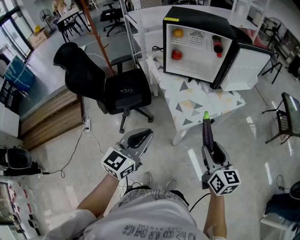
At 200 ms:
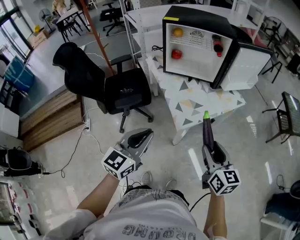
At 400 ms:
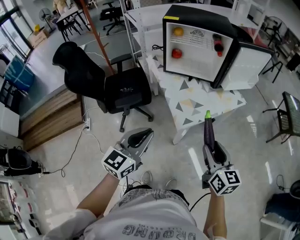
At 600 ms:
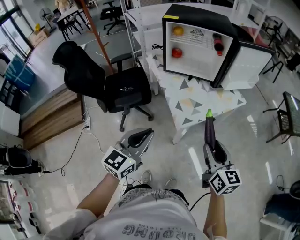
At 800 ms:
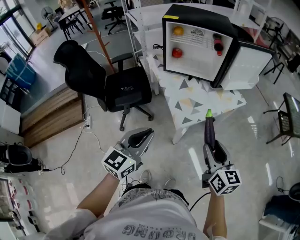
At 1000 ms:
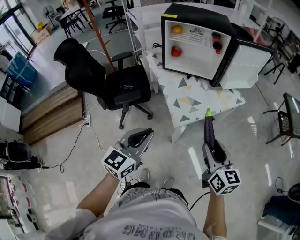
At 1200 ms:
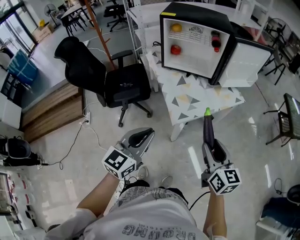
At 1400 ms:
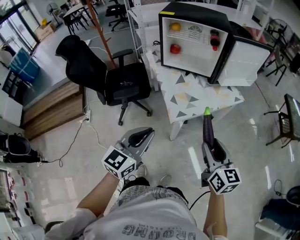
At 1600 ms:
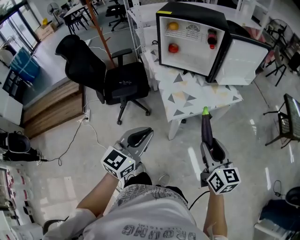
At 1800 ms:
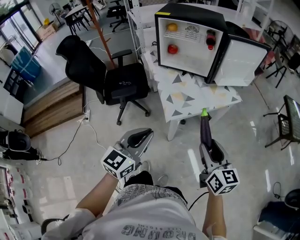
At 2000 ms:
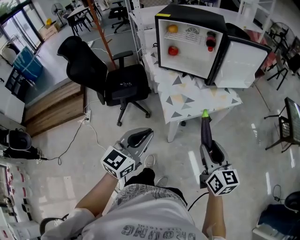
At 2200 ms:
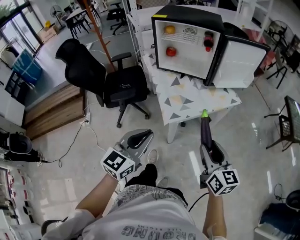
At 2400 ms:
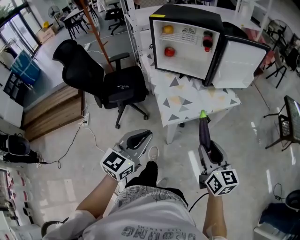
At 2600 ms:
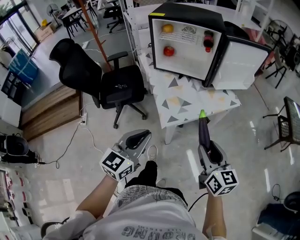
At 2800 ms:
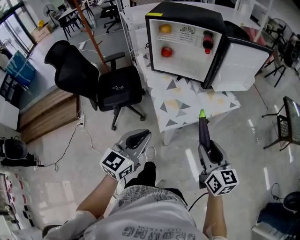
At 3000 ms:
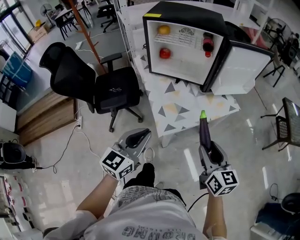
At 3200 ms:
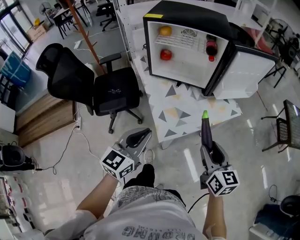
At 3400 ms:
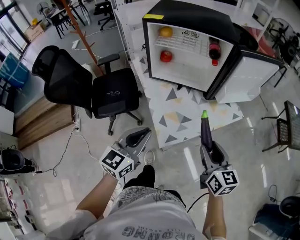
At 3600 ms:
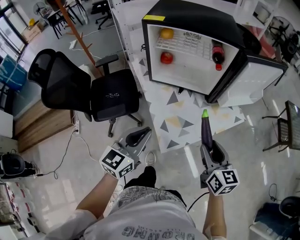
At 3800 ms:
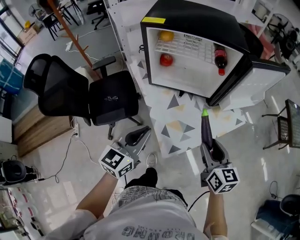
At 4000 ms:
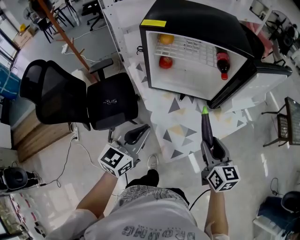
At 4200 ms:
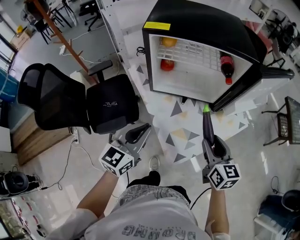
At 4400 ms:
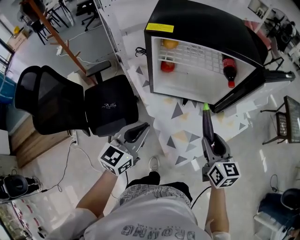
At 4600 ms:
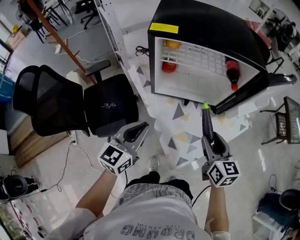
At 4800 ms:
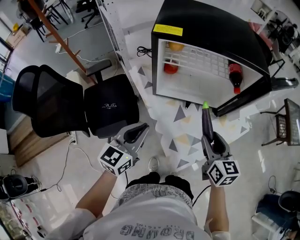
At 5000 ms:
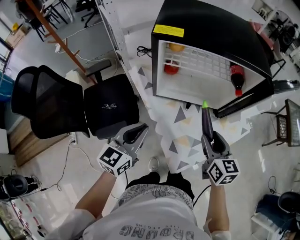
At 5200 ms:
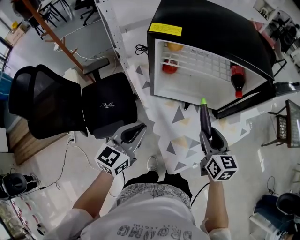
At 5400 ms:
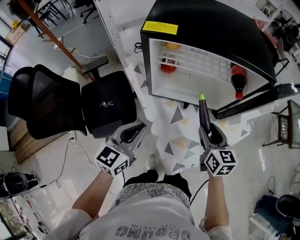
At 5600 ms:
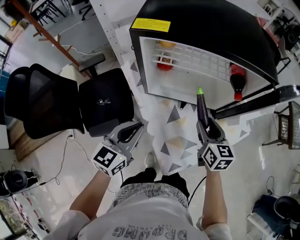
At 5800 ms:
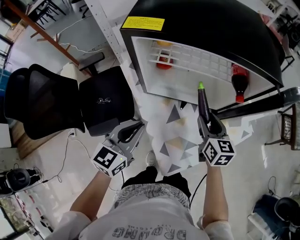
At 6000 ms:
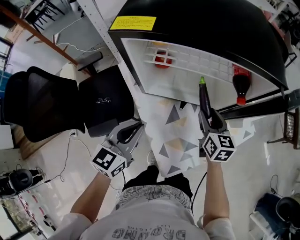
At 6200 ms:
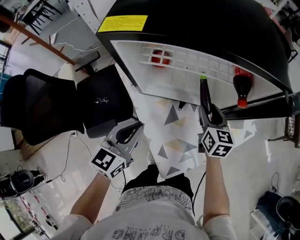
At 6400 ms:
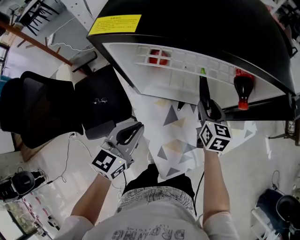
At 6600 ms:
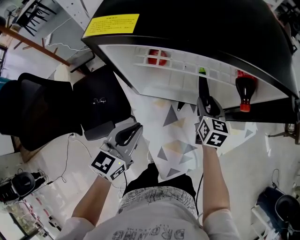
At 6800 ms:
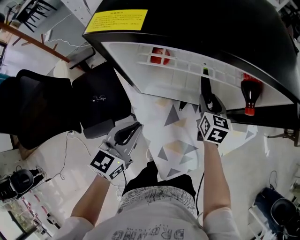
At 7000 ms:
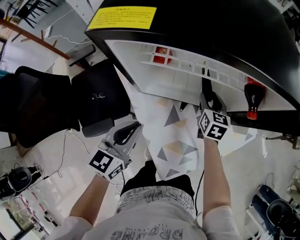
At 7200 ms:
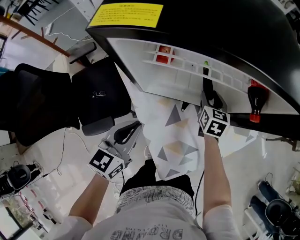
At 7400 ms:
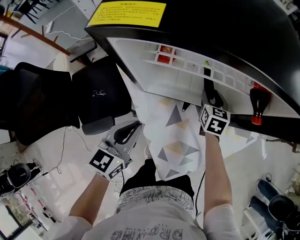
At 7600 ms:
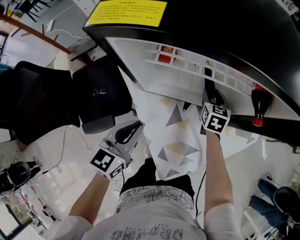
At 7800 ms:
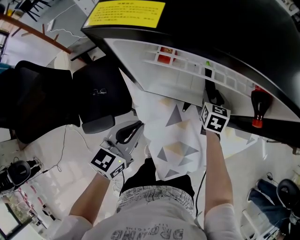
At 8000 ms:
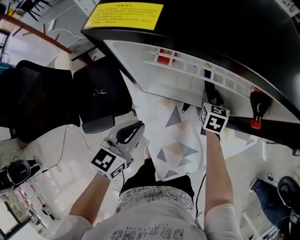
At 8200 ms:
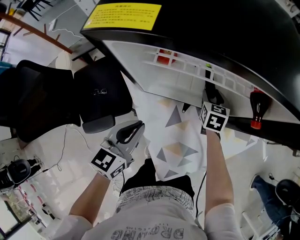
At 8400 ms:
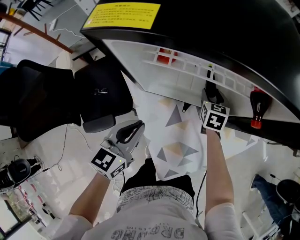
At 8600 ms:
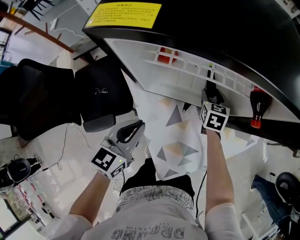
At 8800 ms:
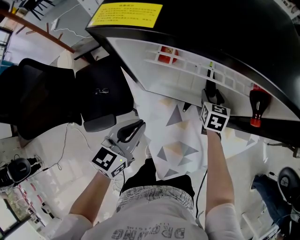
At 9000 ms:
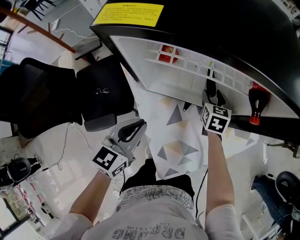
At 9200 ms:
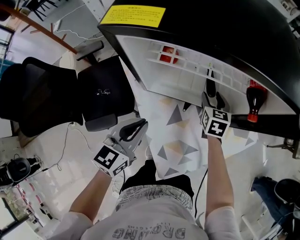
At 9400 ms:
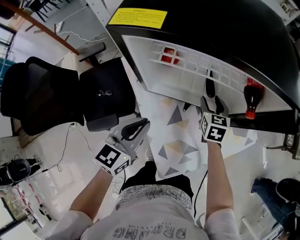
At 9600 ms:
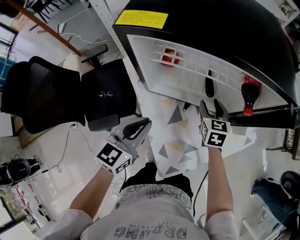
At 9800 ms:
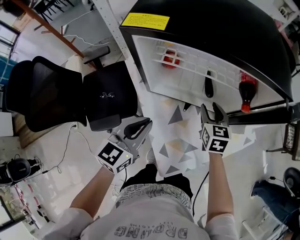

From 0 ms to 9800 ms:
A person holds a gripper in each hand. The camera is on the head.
From 0 ms to 1400 ms: The two grippers go approximately 5 cm to the right.
From 1400 ms to 2800 ms: Both grippers move forward, approximately 5 cm.
From 2800 ms to 4200 ms: The left gripper goes approximately 30 cm forward and to the left. Meanwhile the right gripper moves forward, some 25 cm.
From 4200 ms to 5600 ms: The right gripper travels forward and downward by about 15 cm; the left gripper travels forward by approximately 10 cm.
From 5600 ms to 7000 ms: The left gripper is displaced forward and downward by approximately 10 cm, while the right gripper moves forward and downward, approximately 20 cm.
From 7000 ms to 8400 ms: There are only small adjustments of the grippers.
From 8400 ms to 9800 ms: The right gripper shifts about 15 cm upward and backward; the left gripper is displaced upward by some 5 cm.

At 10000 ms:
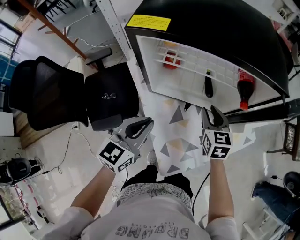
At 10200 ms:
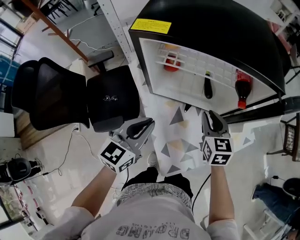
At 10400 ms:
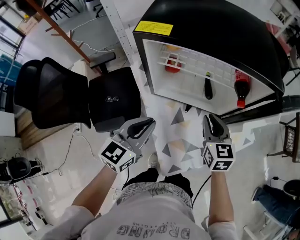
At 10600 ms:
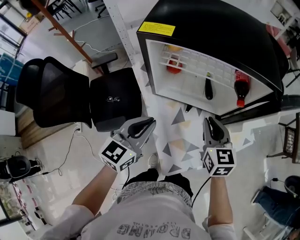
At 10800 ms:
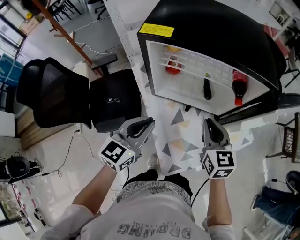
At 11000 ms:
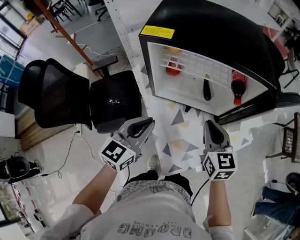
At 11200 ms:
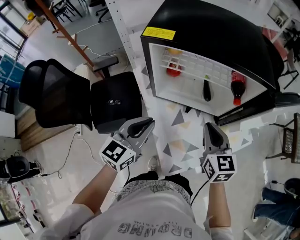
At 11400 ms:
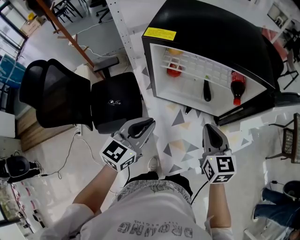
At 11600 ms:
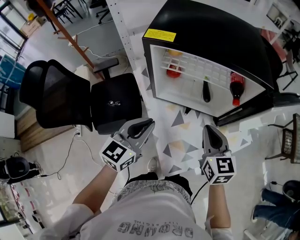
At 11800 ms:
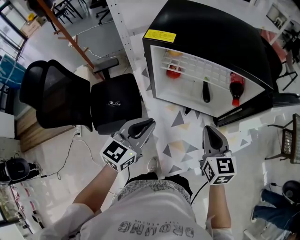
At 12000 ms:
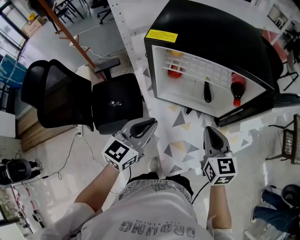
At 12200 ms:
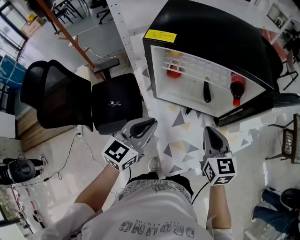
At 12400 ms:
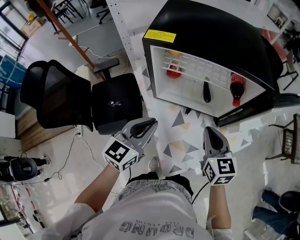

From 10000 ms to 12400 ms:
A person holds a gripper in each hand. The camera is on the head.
From 10000 ms to 11200 ms: The right gripper moves upward and backward, some 15 cm, and closes its fingers.
From 11200 ms to 12400 ms: Both grippers stay about where they are.

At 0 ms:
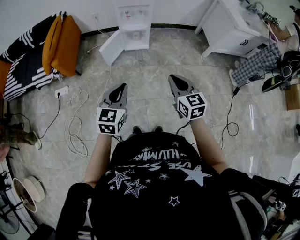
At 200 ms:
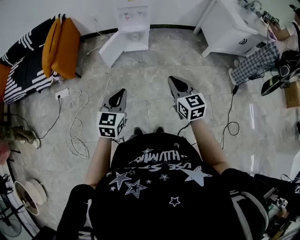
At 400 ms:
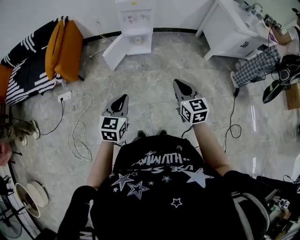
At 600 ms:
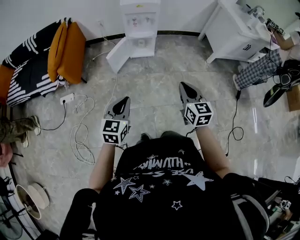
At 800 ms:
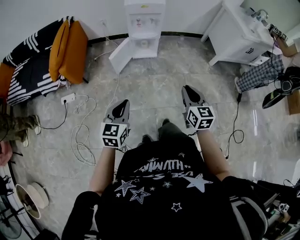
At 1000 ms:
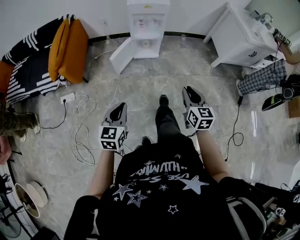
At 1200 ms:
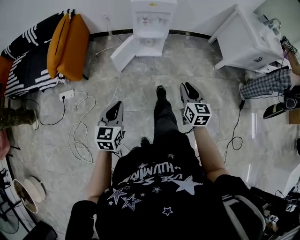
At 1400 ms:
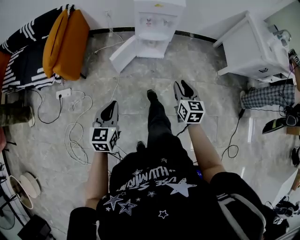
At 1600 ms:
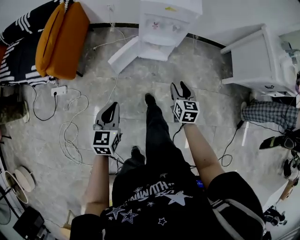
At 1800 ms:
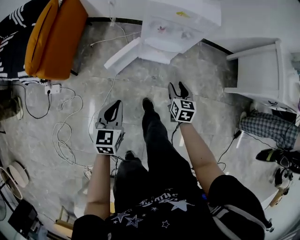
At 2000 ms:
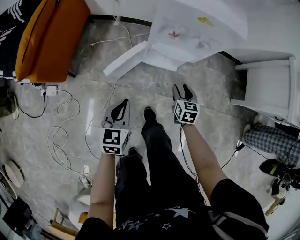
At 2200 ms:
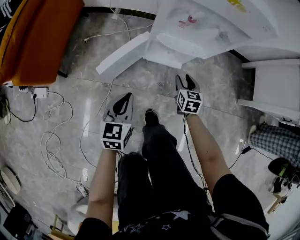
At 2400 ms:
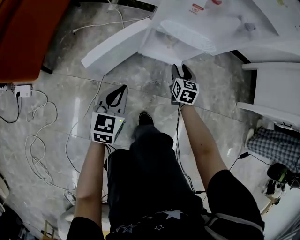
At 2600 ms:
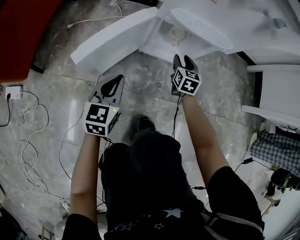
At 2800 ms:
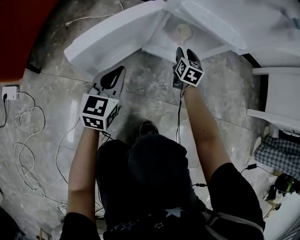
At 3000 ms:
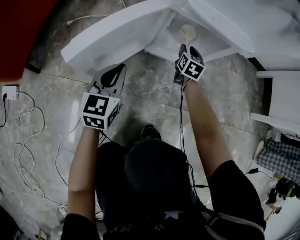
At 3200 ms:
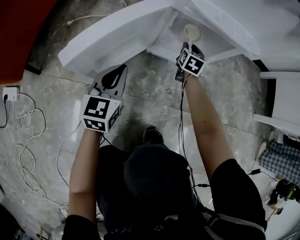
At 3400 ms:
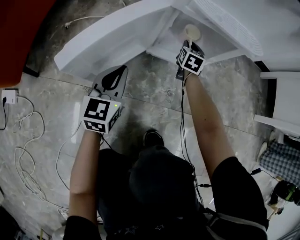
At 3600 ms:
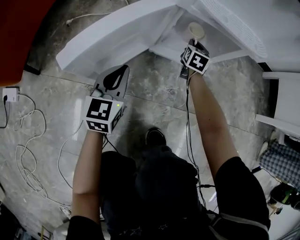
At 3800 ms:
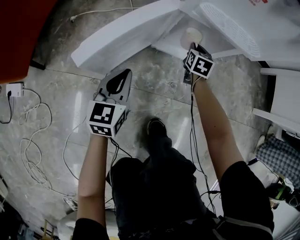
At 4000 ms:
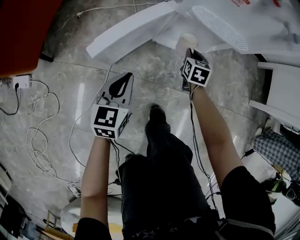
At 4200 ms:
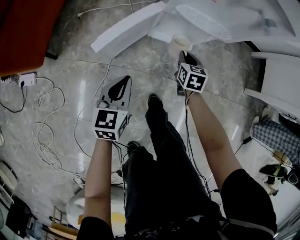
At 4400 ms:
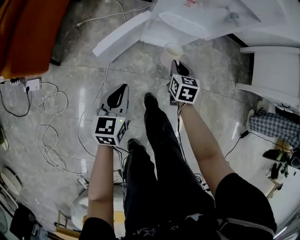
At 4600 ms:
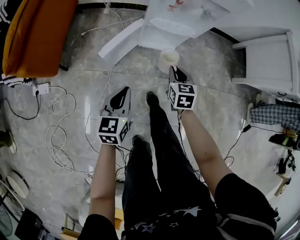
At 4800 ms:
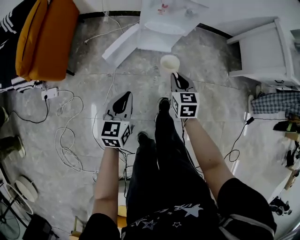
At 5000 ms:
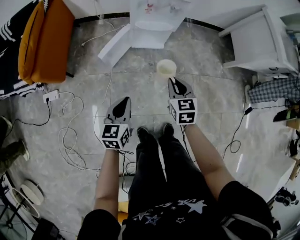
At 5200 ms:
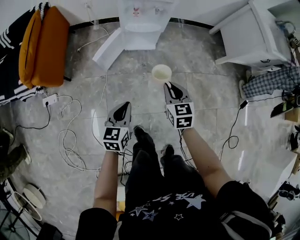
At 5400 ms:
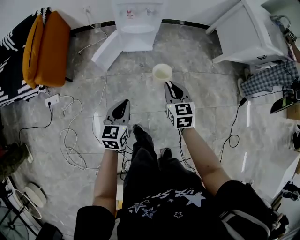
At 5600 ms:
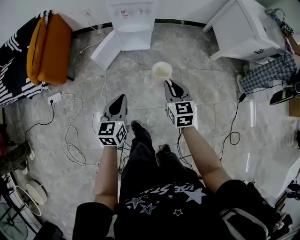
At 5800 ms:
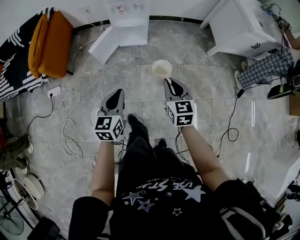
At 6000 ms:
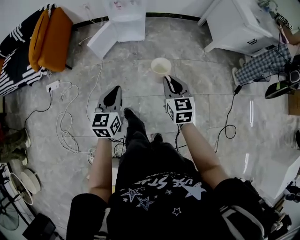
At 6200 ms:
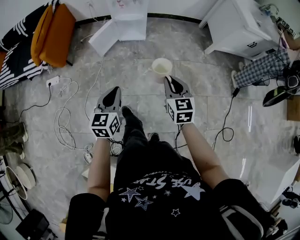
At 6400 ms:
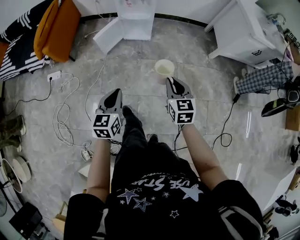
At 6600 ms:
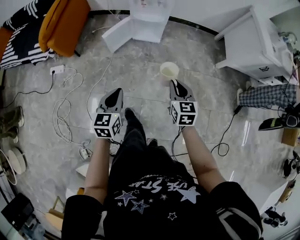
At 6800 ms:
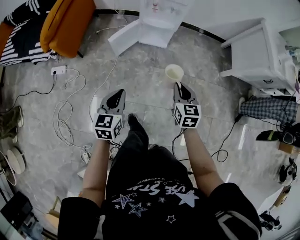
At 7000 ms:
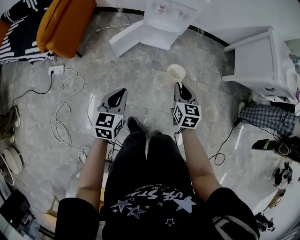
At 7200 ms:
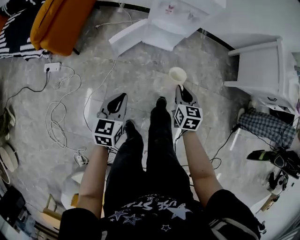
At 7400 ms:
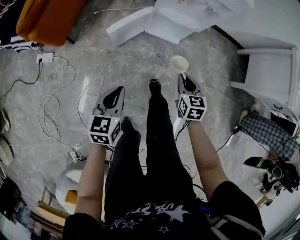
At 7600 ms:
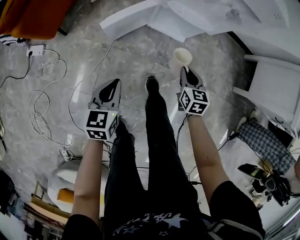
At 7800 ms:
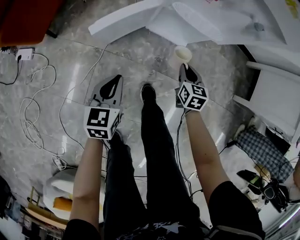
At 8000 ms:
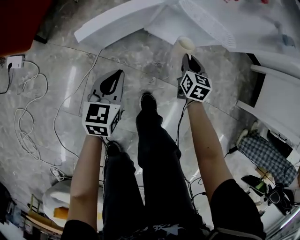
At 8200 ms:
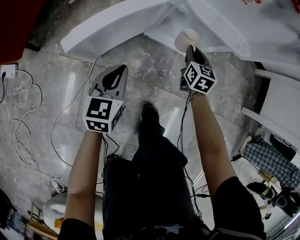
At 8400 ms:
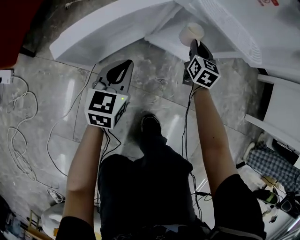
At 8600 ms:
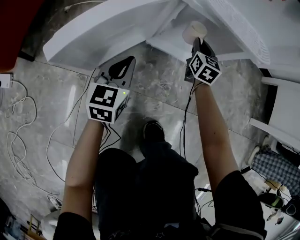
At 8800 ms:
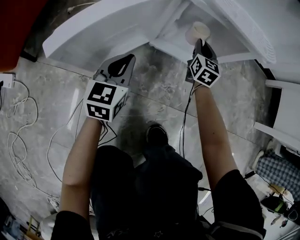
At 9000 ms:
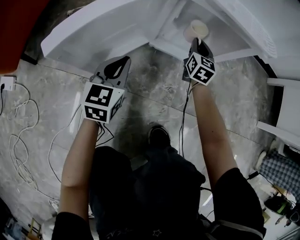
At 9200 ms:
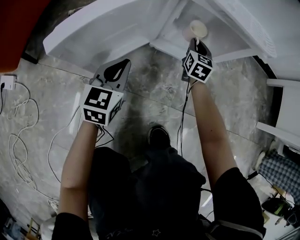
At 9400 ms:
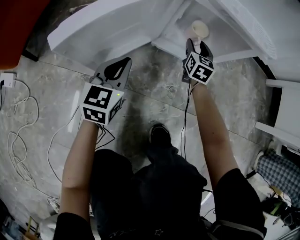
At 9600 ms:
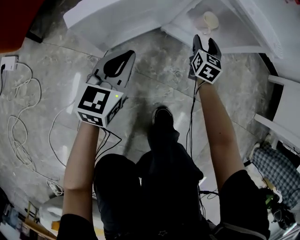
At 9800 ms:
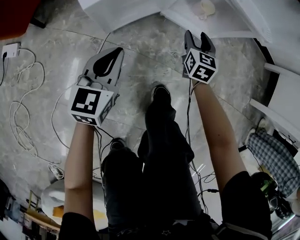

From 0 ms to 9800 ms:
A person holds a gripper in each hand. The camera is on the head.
From 0 ms to 1400 ms: The right gripper travels forward and downward by about 25 cm, and opens up, while the left gripper shifts some 20 cm to the left, forward and downward.
From 1400 ms to 2800 ms: Both grippers move downward and forward, some 70 cm.
From 2800 ms to 4200 ms: Both grippers travel together upward and backward, some 15 cm. The right gripper closes.
From 4200 ms to 5600 ms: The right gripper shifts some 60 cm upward and backward. The left gripper moves upward, backward and to the right, roughly 50 cm.
From 5600 ms to 7000 ms: The left gripper shifts about 10 cm to the left, and reaches some 15 cm backward, then returns. Meanwhile the right gripper moves downward, about 5 cm, and reaches roughly 15 cm backward, then returns.
From 7000 ms to 8400 ms: Both grippers move downward and forward, approximately 70 cm.
From 8400 ms to 9800 ms: The right gripper heads backward, covering roughly 10 cm, and opens. The left gripper heads backward, to the left and upward, covering roughly 15 cm.

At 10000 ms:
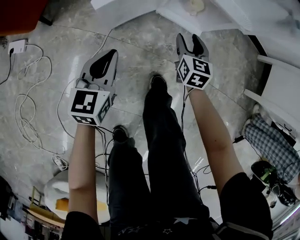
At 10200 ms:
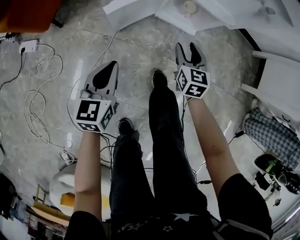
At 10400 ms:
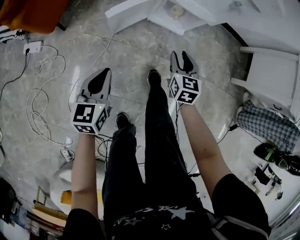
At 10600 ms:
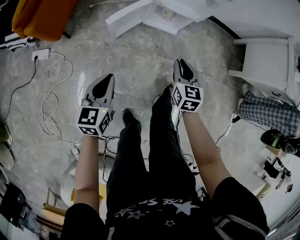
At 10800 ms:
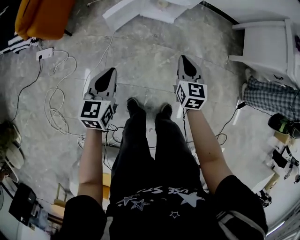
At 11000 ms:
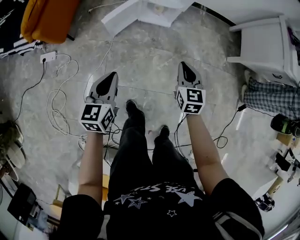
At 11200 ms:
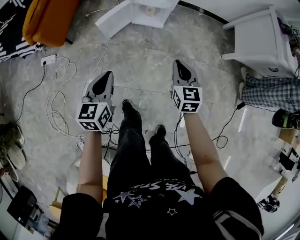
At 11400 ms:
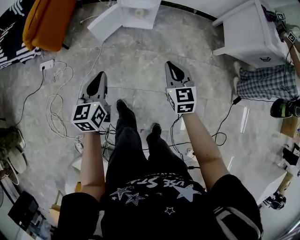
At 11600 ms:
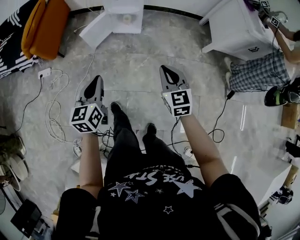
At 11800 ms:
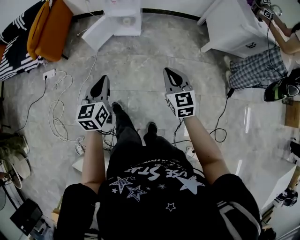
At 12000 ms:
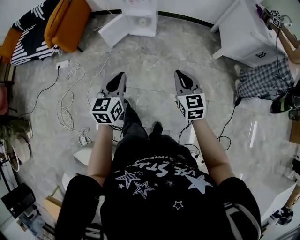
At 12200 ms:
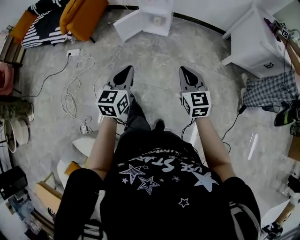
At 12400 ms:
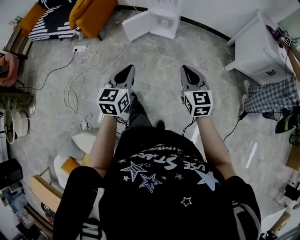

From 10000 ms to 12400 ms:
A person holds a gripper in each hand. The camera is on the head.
From 10000 ms to 11200 ms: Both grippers travel together upward and backward, roughly 50 cm. The right gripper closes.
From 11200 ms to 12400 ms: The right gripper is displaced backward and upward by about 30 cm, and changes its angle by some 20 degrees, while the left gripper moves backward, upward and to the right, approximately 30 cm.
